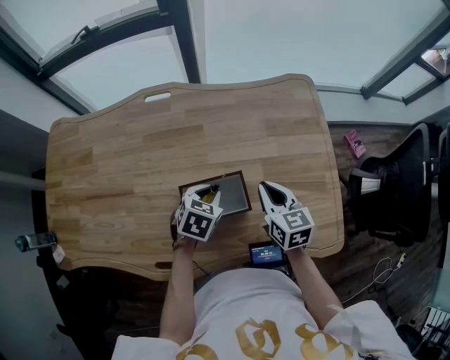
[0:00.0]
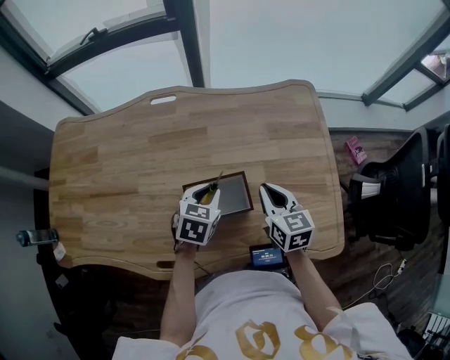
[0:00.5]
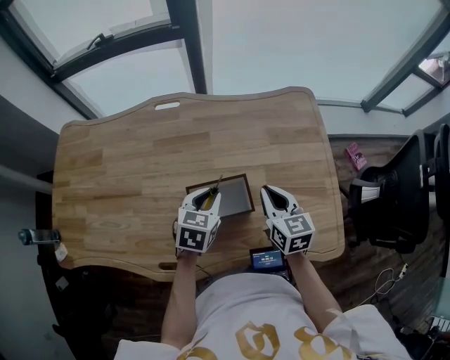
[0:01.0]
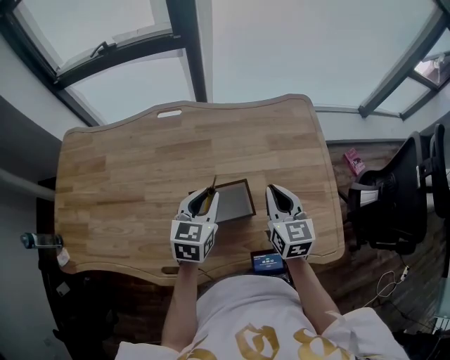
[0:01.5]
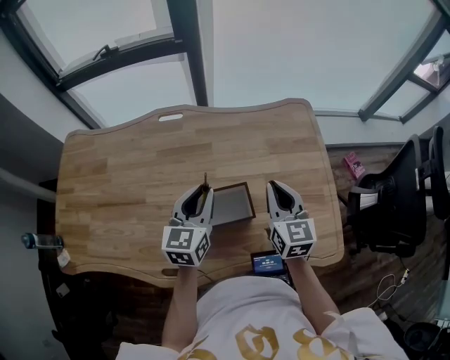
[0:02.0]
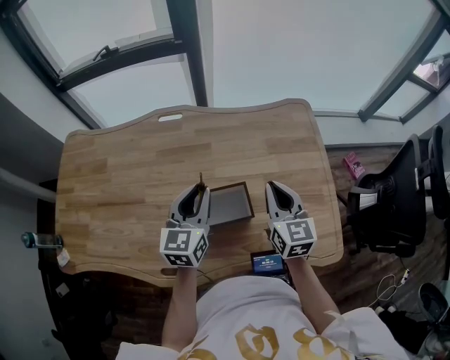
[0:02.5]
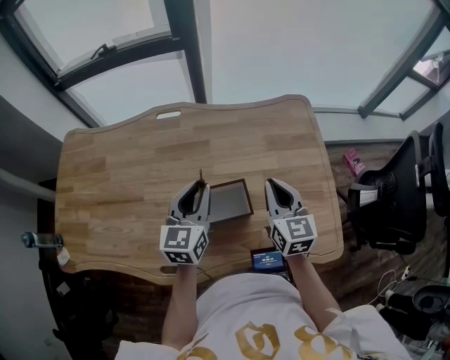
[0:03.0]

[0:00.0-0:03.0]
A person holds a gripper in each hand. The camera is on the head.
0:00.0 to 0:01.5: The right gripper heads upward, covering approximately 5 cm, while the left gripper heads upward, covering about 10 cm, and changes its angle by some 30 degrees.
0:01.5 to 0:03.0: The left gripper shifts by some 5 cm.

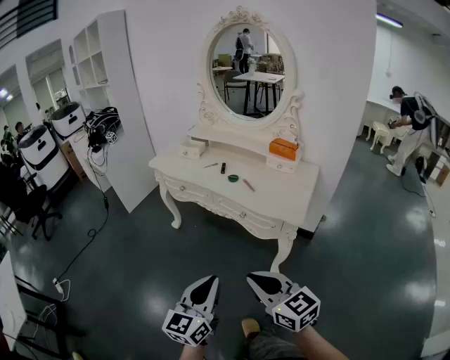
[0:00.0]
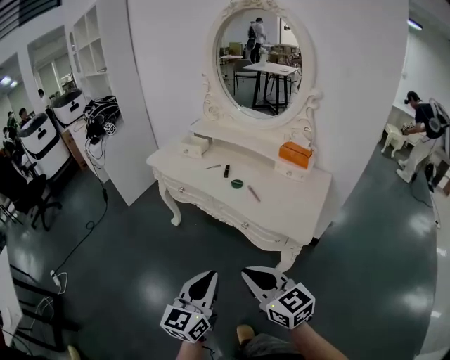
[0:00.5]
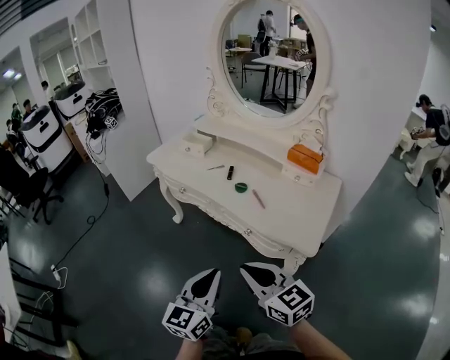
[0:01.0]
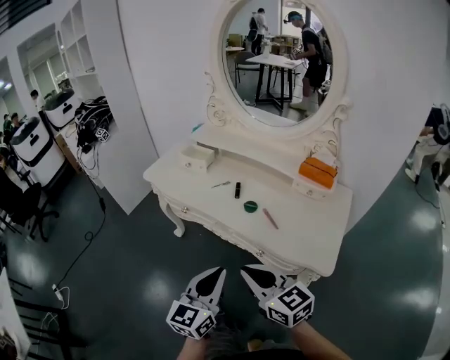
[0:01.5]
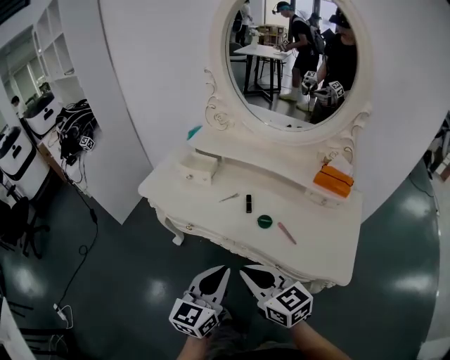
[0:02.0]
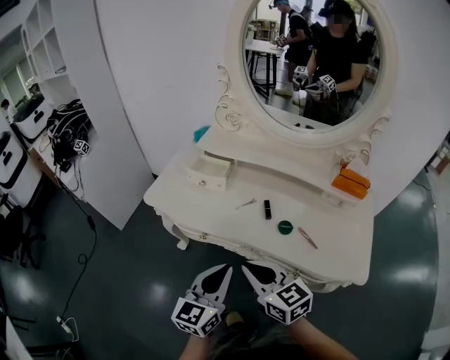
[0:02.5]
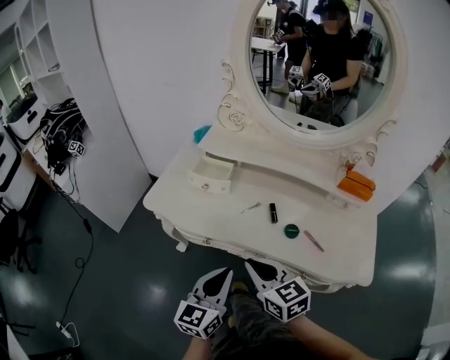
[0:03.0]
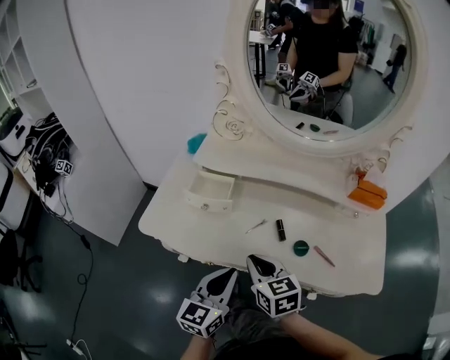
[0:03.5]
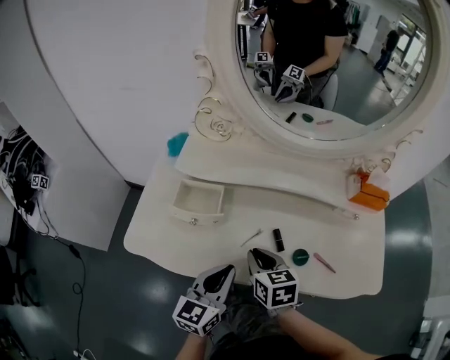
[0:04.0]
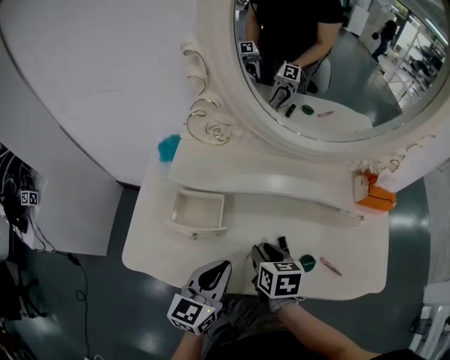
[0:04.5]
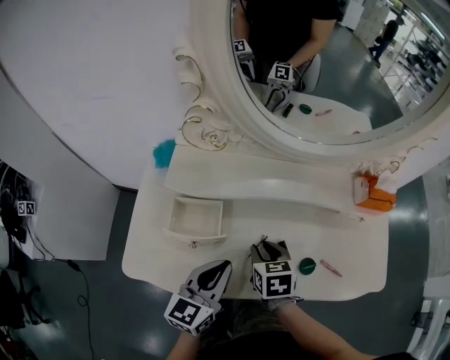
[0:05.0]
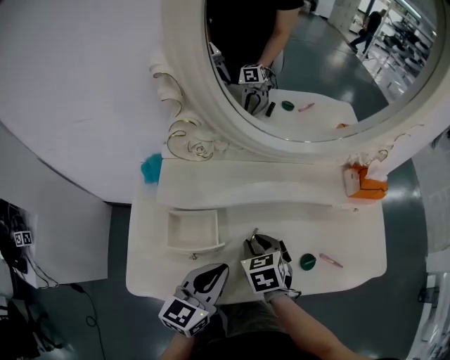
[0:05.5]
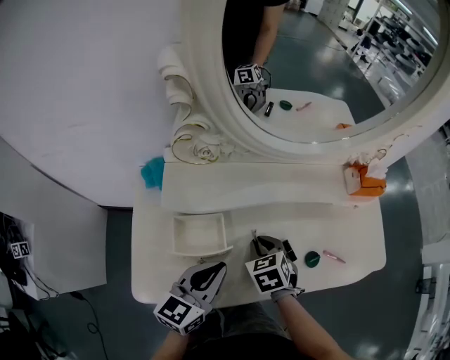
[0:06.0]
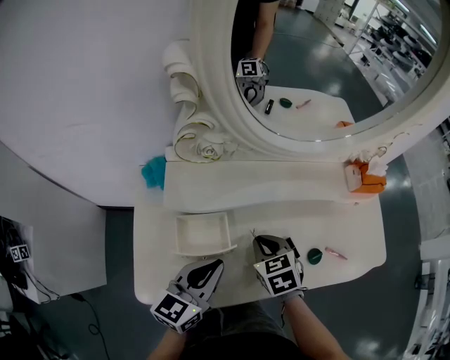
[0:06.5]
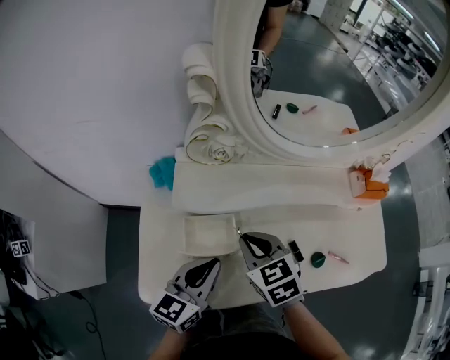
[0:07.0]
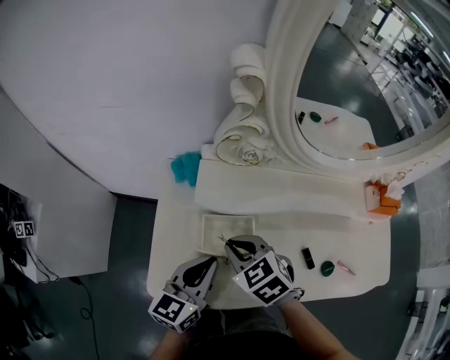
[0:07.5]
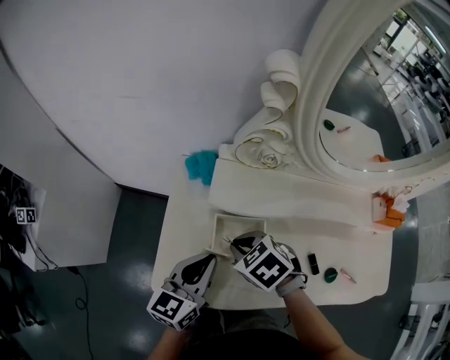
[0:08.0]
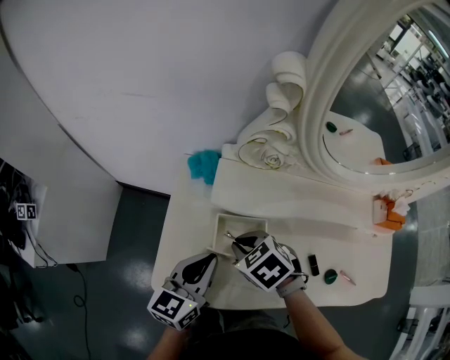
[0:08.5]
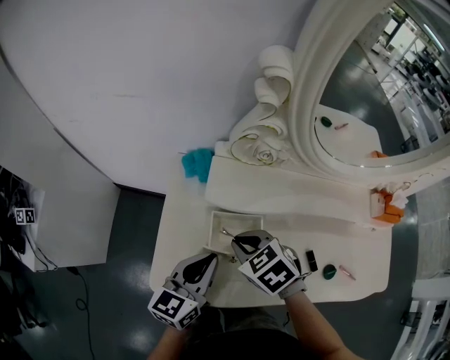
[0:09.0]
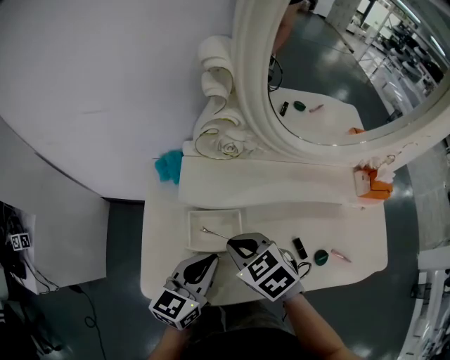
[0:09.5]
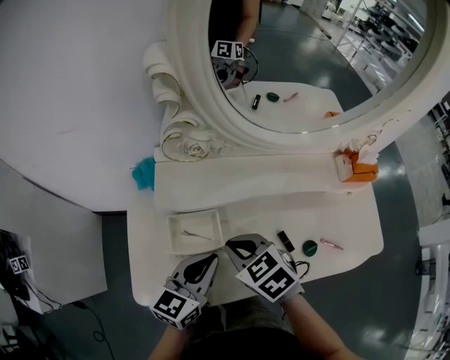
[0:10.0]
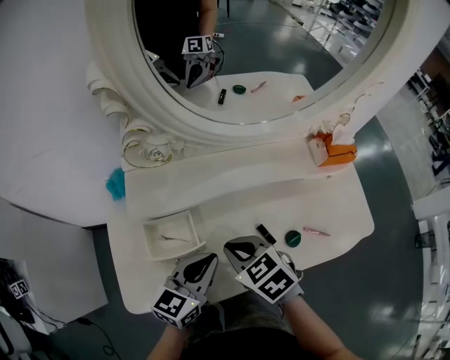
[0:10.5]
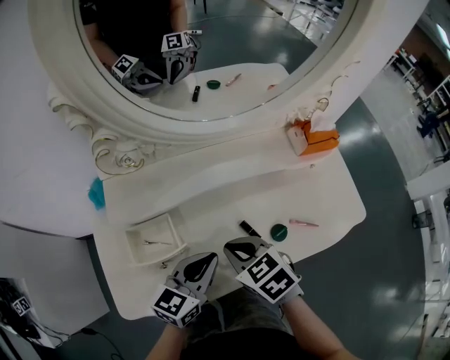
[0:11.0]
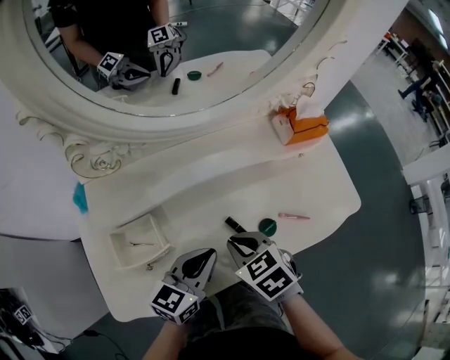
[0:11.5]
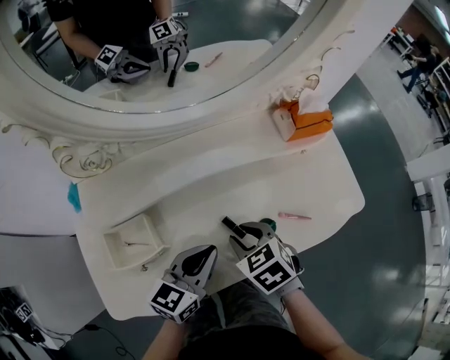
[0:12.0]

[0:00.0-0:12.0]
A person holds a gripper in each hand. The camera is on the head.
0:00.0 to 0:02.0: Both grippers travel together forward, some 40 cm.
0:02.0 to 0:04.0: The right gripper ends up about 30 cm from where it was, and turns by some 40 degrees; the left gripper moves approximately 25 cm.
0:04.0 to 0:06.0: The left gripper is displaced forward and to the left by some 10 cm, and swivels some 20 degrees. Meanwhile the right gripper heads forward, covering about 10 cm, and turns by some 30 degrees.
0:06.0 to 0:08.0: The left gripper ends up about 10 cm from where it was; the right gripper shifts by roughly 20 cm, and rotates roughly 40 degrees.
0:08.0 to 0:10.0: Both grippers move to the right, some 10 cm. The right gripper swivels about 20 degrees.
0:10.0 to 0:12.0: Both grippers move to the right, some 15 cm. The right gripper rotates about 20 degrees, and opens up.

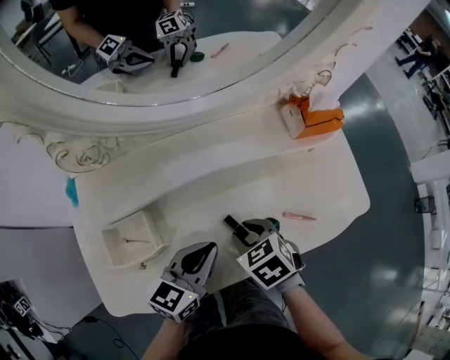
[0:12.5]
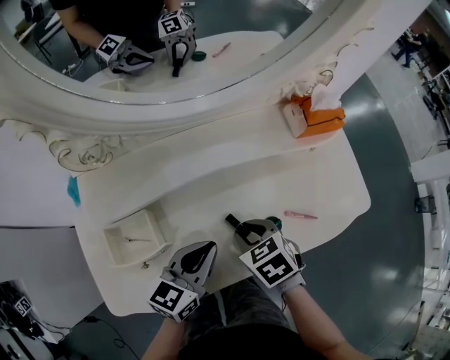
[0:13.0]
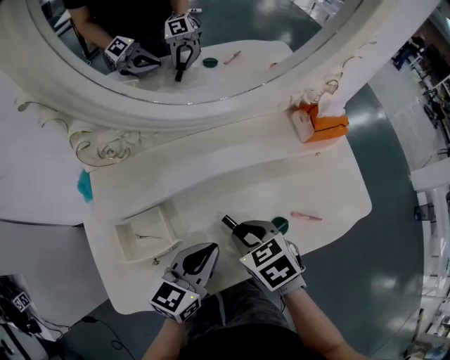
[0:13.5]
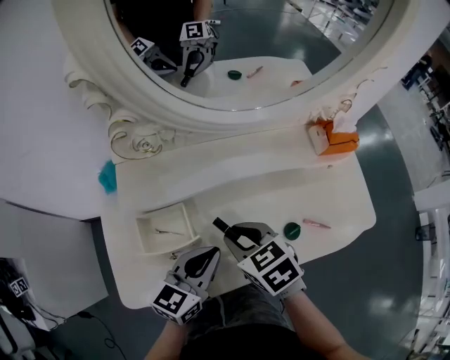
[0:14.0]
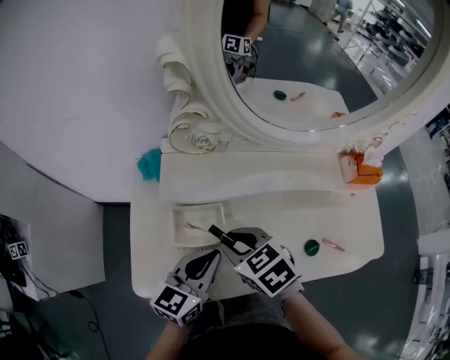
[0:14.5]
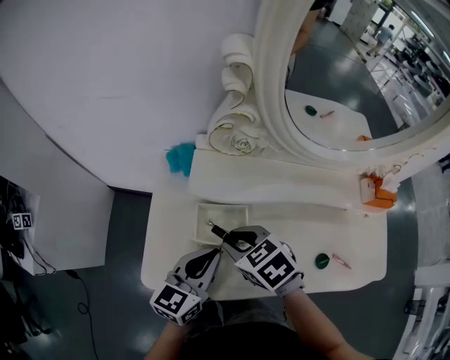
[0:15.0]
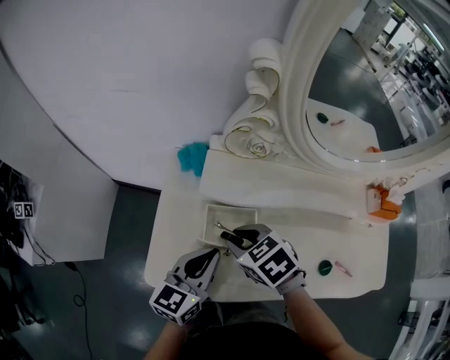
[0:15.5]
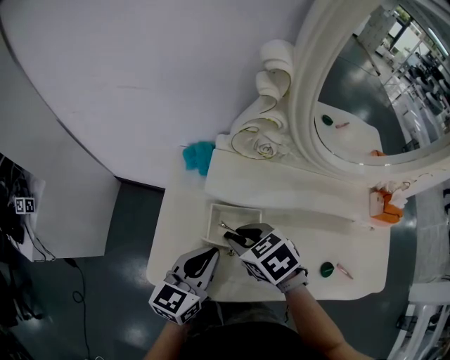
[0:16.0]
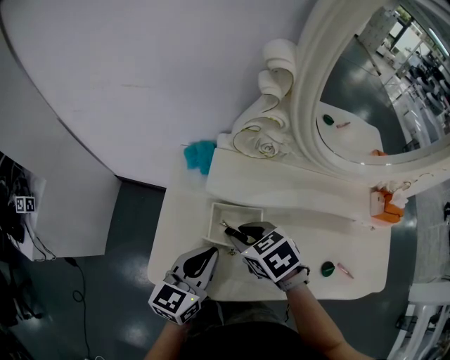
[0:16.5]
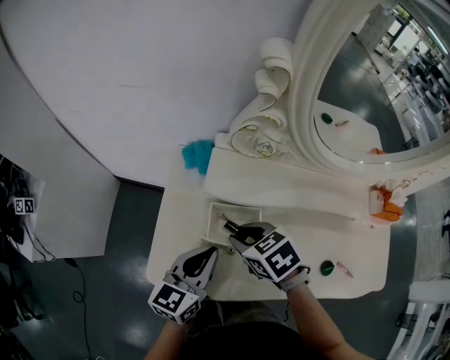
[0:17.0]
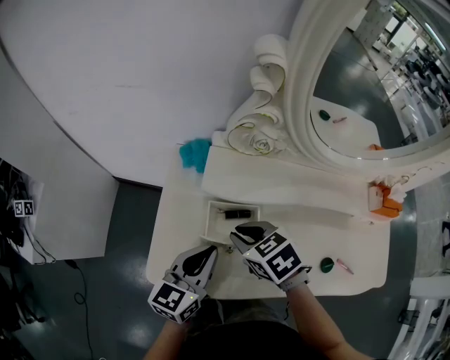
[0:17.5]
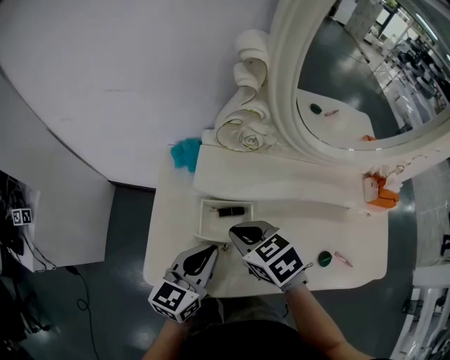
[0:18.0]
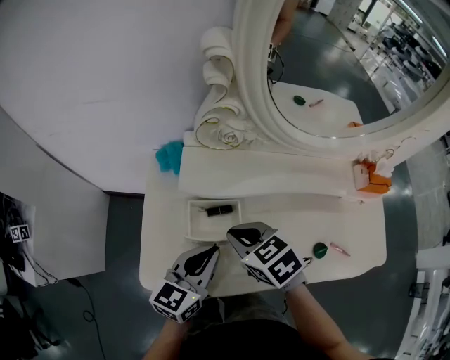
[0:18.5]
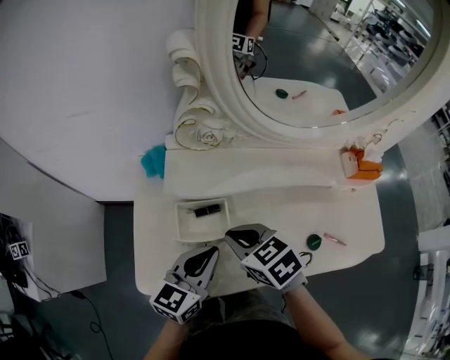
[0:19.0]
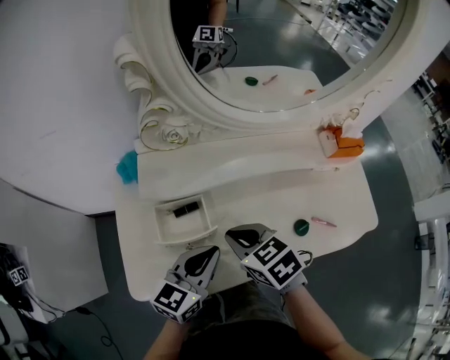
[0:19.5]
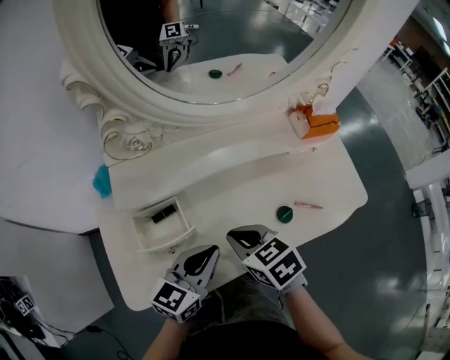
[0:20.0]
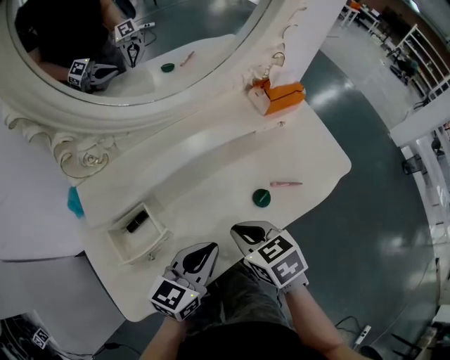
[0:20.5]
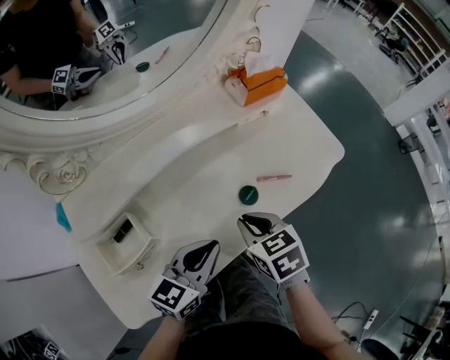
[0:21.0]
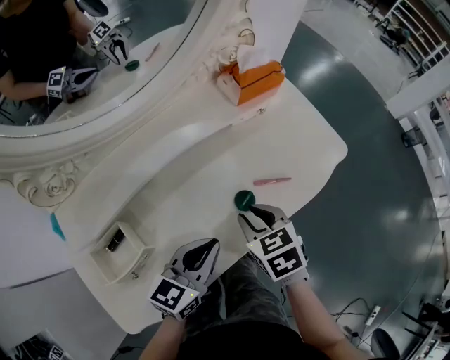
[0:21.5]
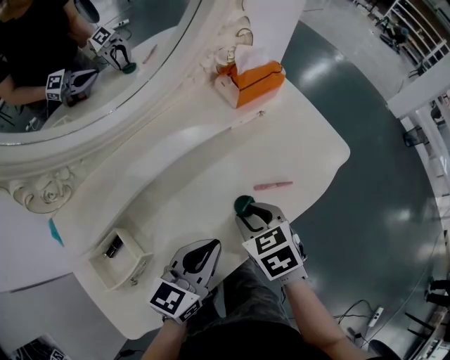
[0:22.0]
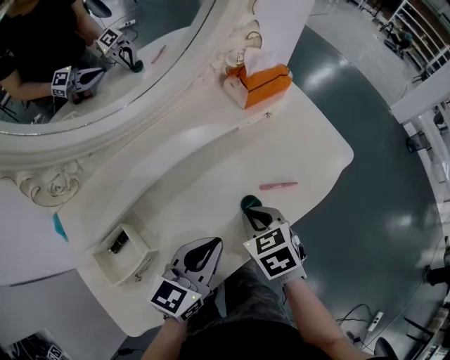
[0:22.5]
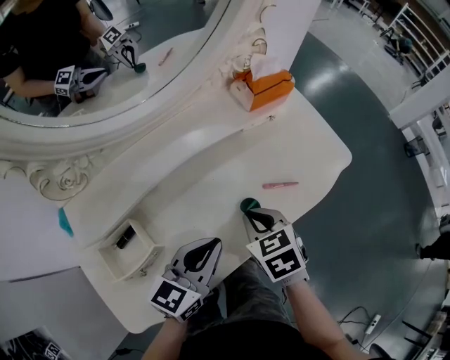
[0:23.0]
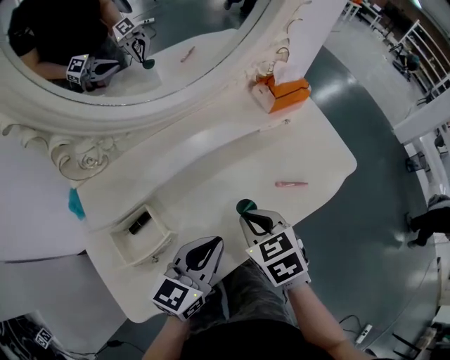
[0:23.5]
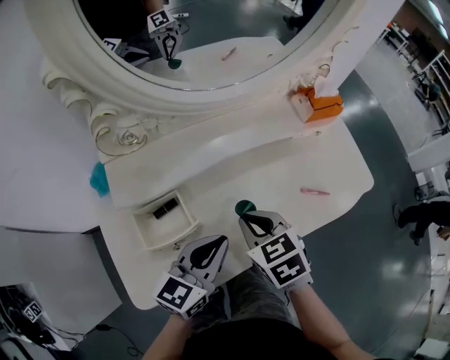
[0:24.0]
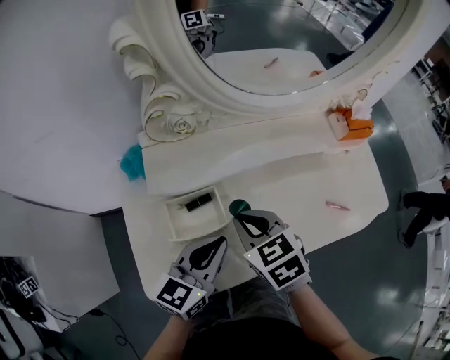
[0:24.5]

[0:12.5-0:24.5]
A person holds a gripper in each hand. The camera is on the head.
0:12.5 to 0:14.5: The right gripper goes about 20 cm to the left and upward, and changes its angle by about 20 degrees; the left gripper heads to the left, covering some 15 cm.
0:14.5 to 0:16.5: The right gripper travels to the left by some 5 cm, while the left gripper is displaced to the left by about 10 cm.
0:16.5 to 0:18.5: The grippers stay close to where they were, moving slightly.
0:18.5 to 0:20.5: The right gripper changes place by some 20 cm, and swivels roughly 40 degrees, while the left gripper moves some 15 cm, and changes its angle by about 30 degrees.
0:20.5 to 0:22.5: The left gripper goes roughly 5 cm forward. The right gripper goes roughly 10 cm to the right, forward and downward, and opens and closes again.
0:22.5 to 0:24.5: The right gripper changes place by approximately 25 cm, and turns by about 30 degrees, while the left gripper shifts by roughly 20 cm, and turns by approximately 20 degrees.
